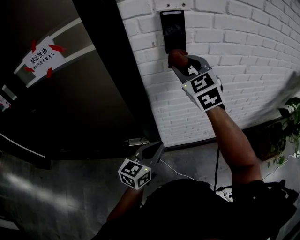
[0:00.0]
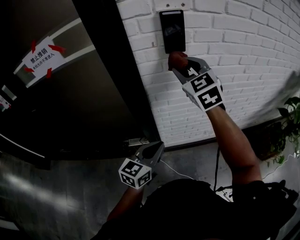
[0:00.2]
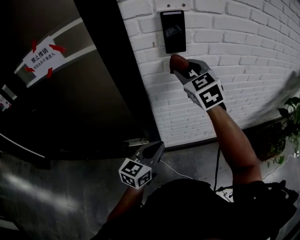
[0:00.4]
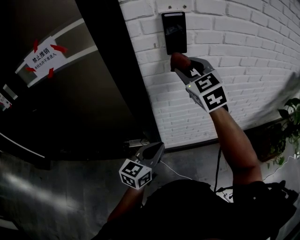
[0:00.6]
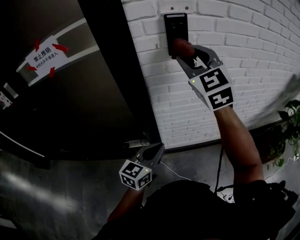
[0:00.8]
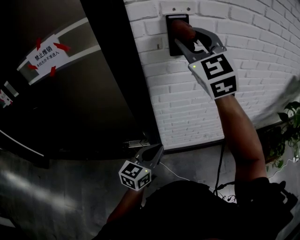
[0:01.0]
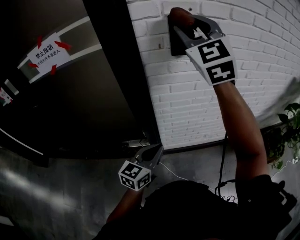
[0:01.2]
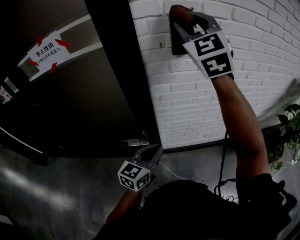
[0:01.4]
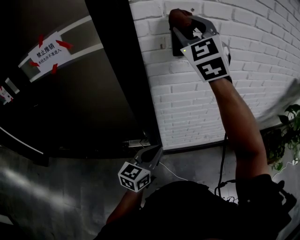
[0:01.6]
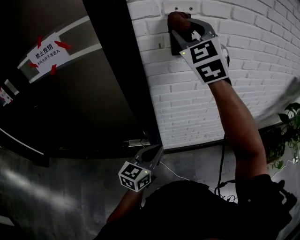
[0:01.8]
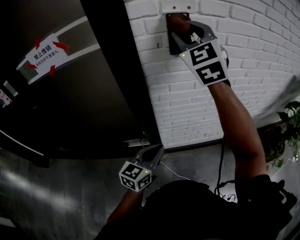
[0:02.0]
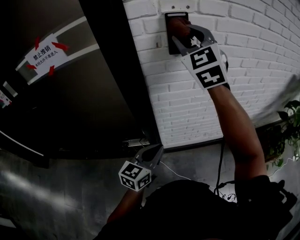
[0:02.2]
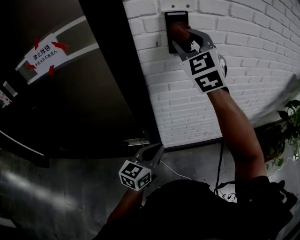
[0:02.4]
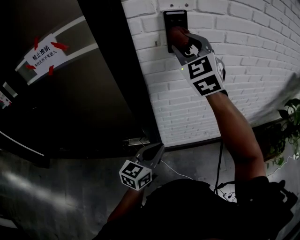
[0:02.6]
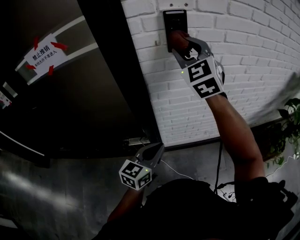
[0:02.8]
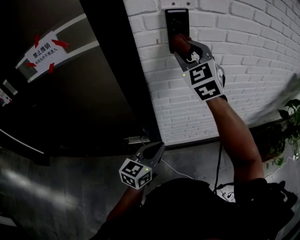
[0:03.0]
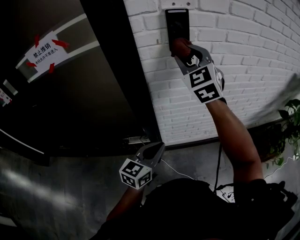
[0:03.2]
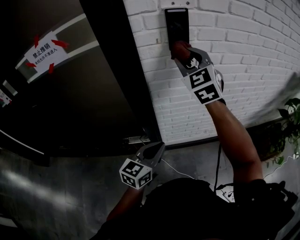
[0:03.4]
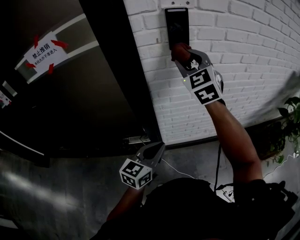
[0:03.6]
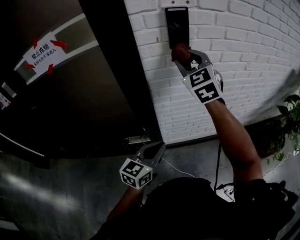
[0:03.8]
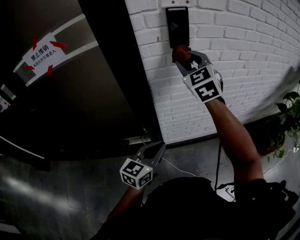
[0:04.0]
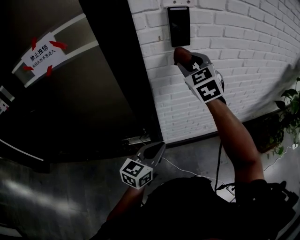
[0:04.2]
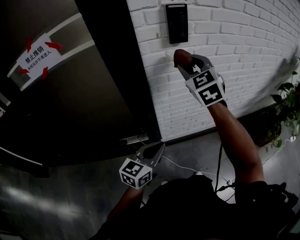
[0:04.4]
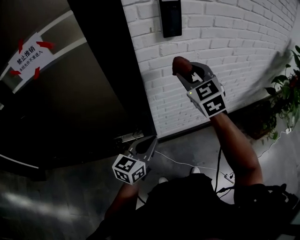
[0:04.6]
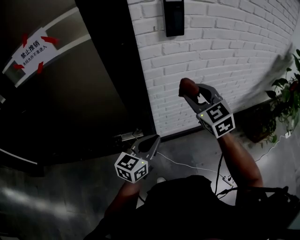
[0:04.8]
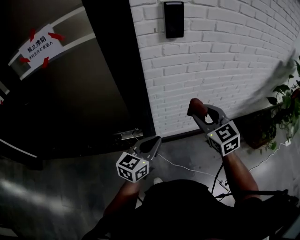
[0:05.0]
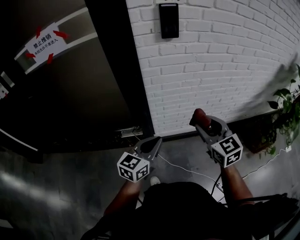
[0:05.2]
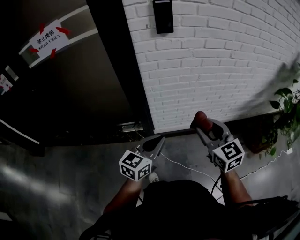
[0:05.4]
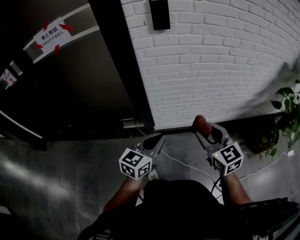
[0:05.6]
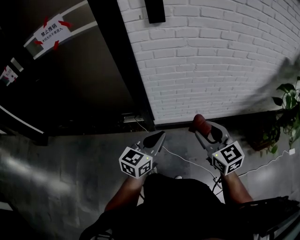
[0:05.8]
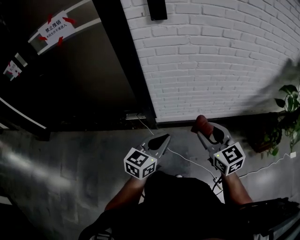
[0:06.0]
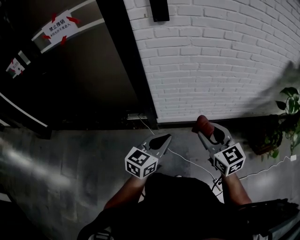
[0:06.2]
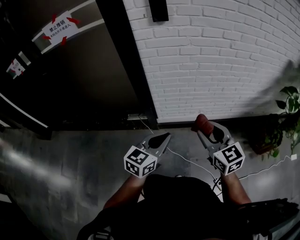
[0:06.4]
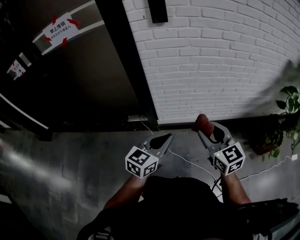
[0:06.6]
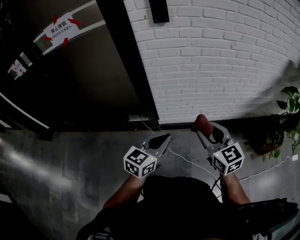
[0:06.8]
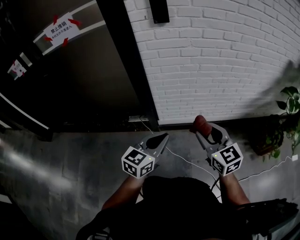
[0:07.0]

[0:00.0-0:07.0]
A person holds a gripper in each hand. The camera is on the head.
0.0 to 1.4 s: The right gripper is displaced upward by about 15 cm, and turns by about 20 degrees.
1.4 to 2.8 s: The right gripper goes approximately 10 cm downward.
2.8 to 4.2 s: The right gripper shifts approximately 10 cm downward.
4.2 to 5.6 s: The left gripper travels to the right and backward by approximately 15 cm. Meanwhile the right gripper shifts some 40 cm backward, to the right and downward, and changes its angle by approximately 30 degrees.
5.6 to 7.0 s: The left gripper moves approximately 5 cm.

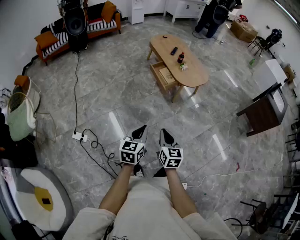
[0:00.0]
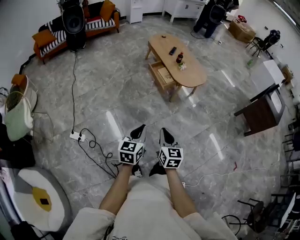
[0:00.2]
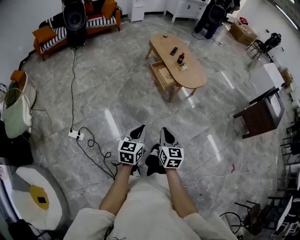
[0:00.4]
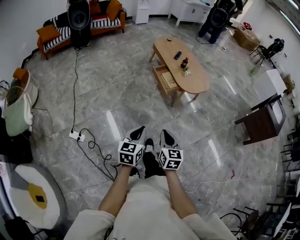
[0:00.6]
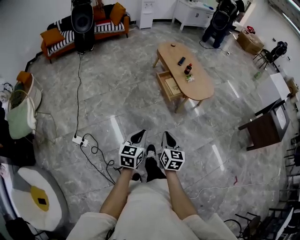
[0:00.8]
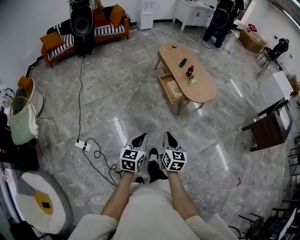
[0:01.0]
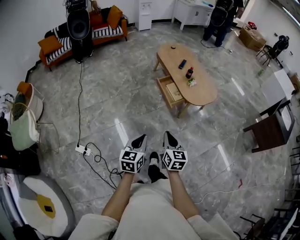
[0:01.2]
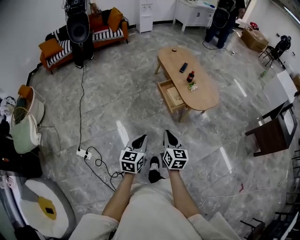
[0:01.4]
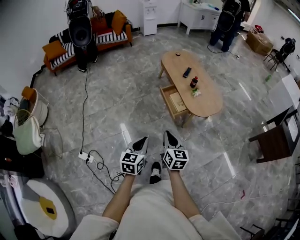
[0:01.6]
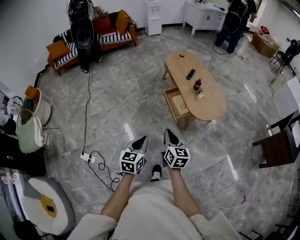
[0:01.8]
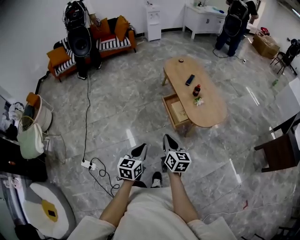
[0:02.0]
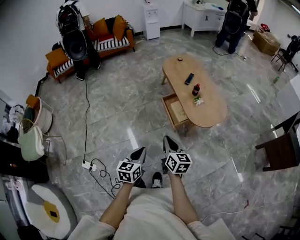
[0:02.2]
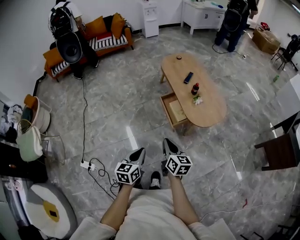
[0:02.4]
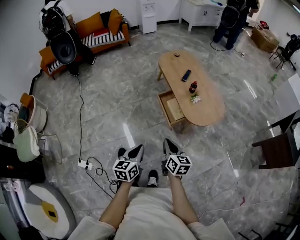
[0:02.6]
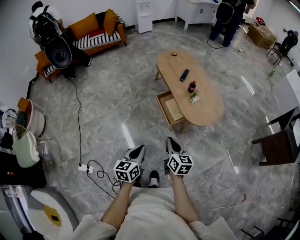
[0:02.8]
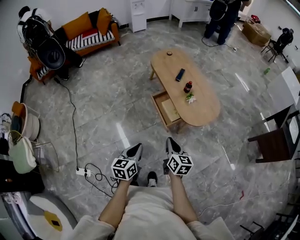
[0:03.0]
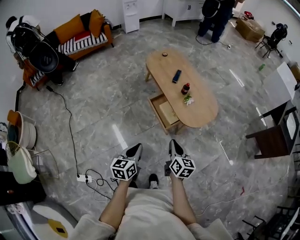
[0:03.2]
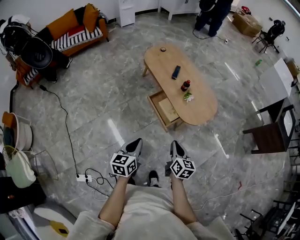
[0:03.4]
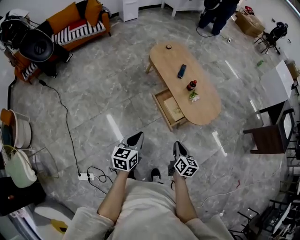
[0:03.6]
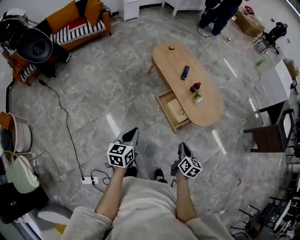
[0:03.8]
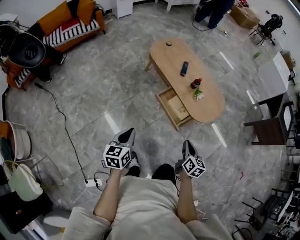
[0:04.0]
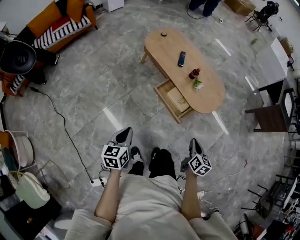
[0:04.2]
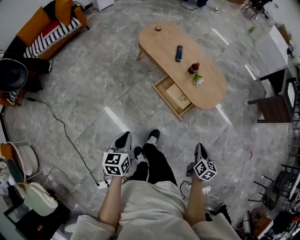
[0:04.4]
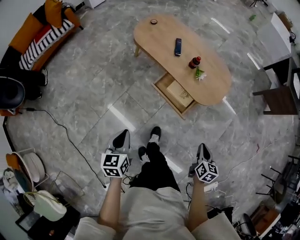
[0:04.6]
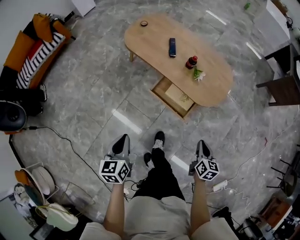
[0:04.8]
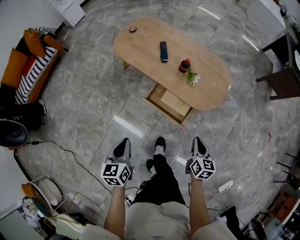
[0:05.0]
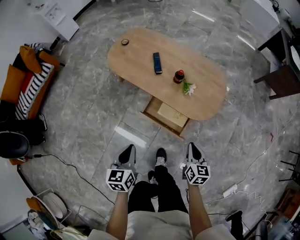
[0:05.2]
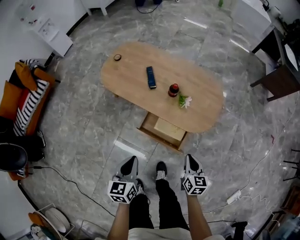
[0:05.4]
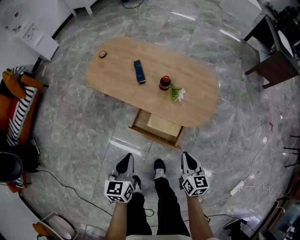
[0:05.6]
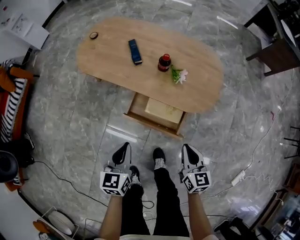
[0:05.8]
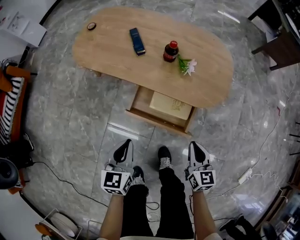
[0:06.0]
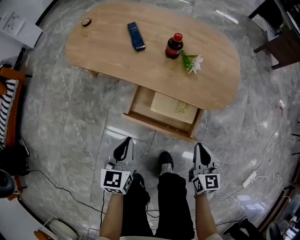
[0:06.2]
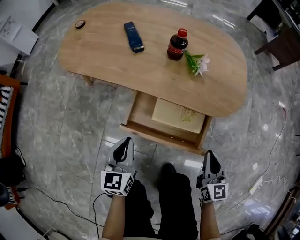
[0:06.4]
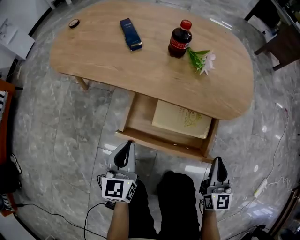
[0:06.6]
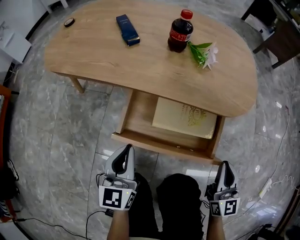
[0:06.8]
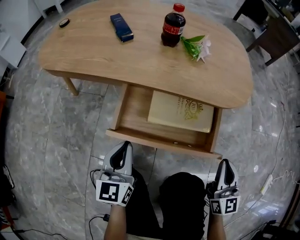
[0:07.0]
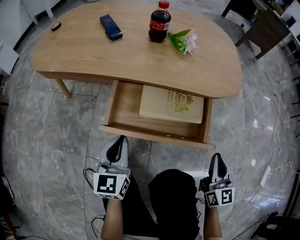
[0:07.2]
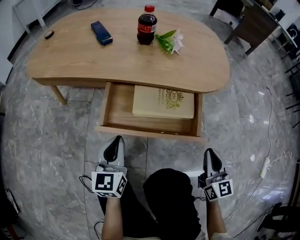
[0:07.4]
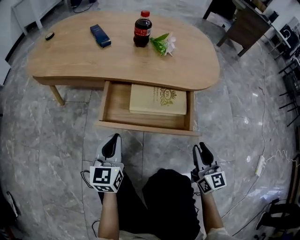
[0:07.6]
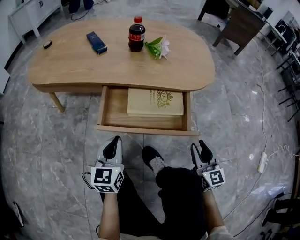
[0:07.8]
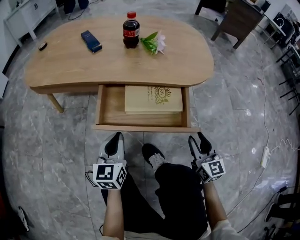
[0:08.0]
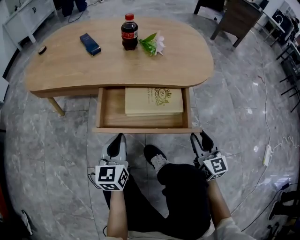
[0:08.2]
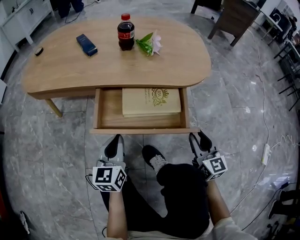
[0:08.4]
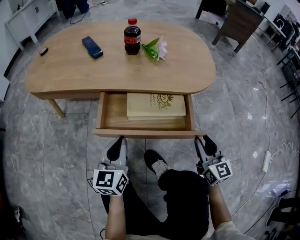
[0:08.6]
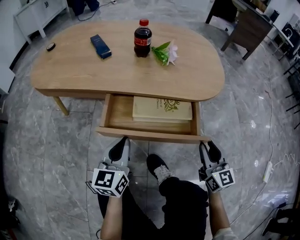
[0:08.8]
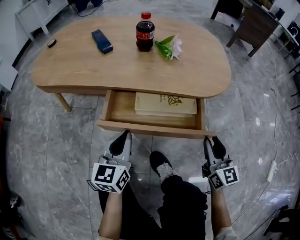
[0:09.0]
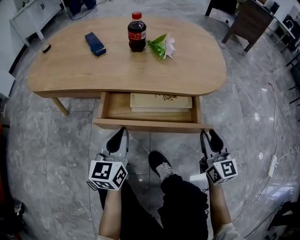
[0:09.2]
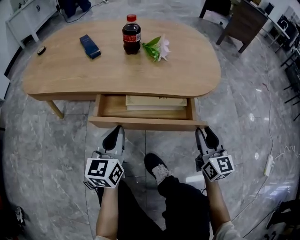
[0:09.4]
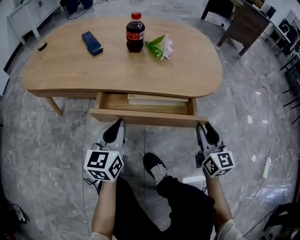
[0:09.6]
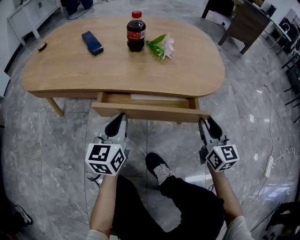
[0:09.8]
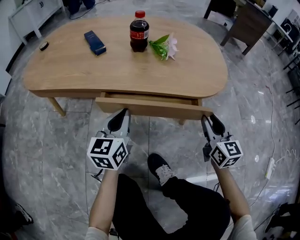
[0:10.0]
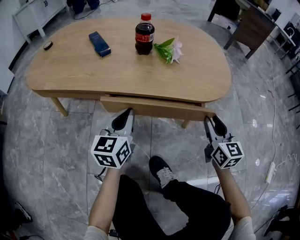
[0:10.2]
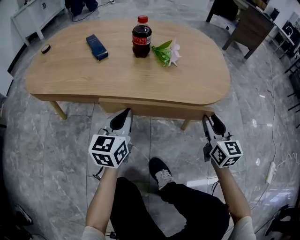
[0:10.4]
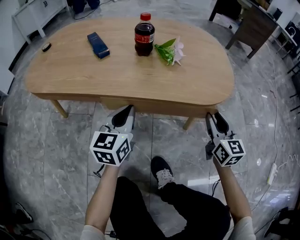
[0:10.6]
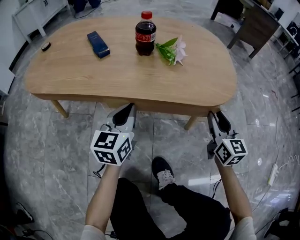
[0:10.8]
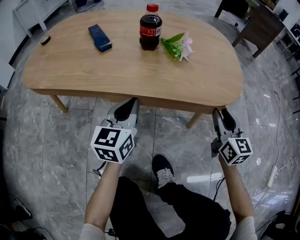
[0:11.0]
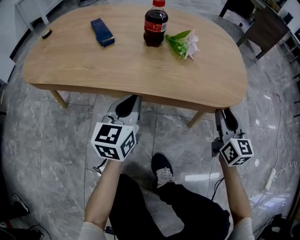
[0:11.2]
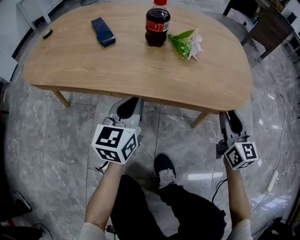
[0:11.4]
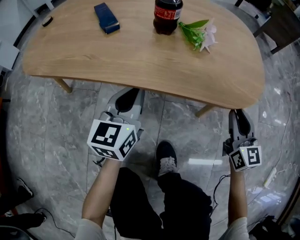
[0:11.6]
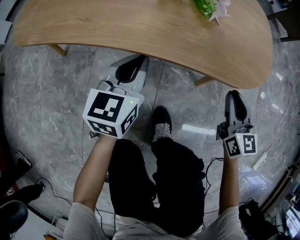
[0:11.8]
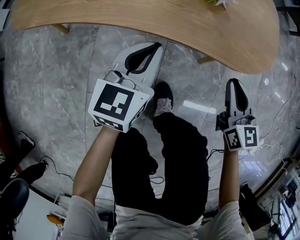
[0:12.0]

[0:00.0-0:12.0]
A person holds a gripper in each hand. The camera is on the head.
0.0 to 1.6 s: The two grippers go about 25 cm forward.
1.6 to 3.0 s: The right gripper travels forward and to the right by roughly 15 cm. The left gripper is displaced forward by some 15 cm.
3.0 to 4.4 s: The left gripper is displaced to the left and forward by approximately 30 cm. The right gripper is displaced downward by approximately 10 cm, and changes its angle by roughly 40 degrees.
4.4 to 6.0 s: The left gripper moves forward and downward, some 35 cm, and turns by approximately 30 degrees. The right gripper travels downward and forward by roughly 25 cm.
6.0 to 7.6 s: Both grippers move downward, approximately 20 cm. The left gripper swivels approximately 20 degrees. The right gripper rotates some 20 degrees, and opens up.
7.6 to 9.0 s: The right gripper shifts approximately 5 cm forward. Meanwhile the left gripper ends up roughly 5 cm from where it was.
9.0 to 10.4 s: The grippers both shift forward by approximately 10 cm.
10.4 to 12.0 s: The left gripper moves about 5 cm, while the right gripper closes up.

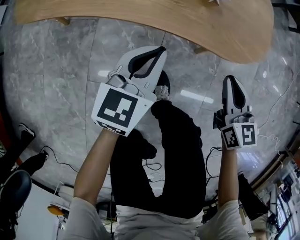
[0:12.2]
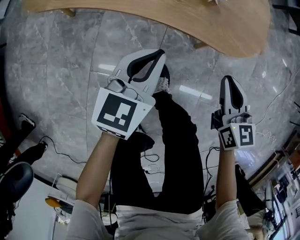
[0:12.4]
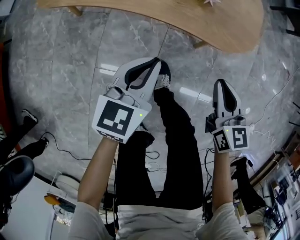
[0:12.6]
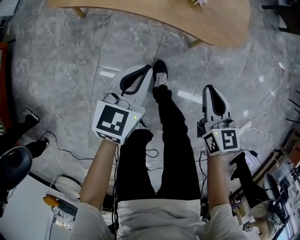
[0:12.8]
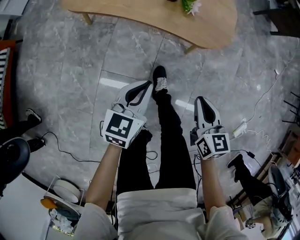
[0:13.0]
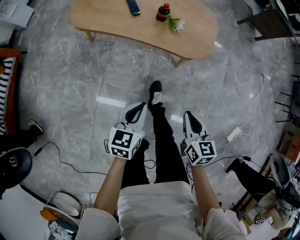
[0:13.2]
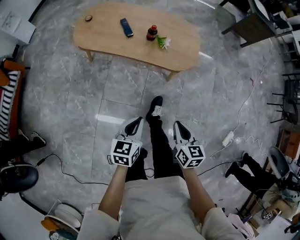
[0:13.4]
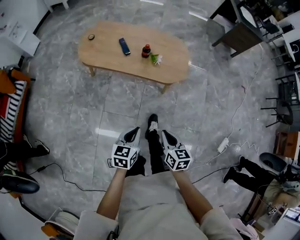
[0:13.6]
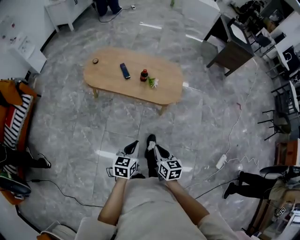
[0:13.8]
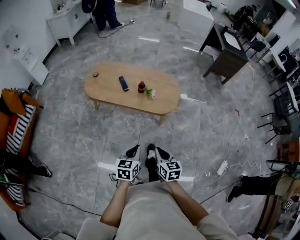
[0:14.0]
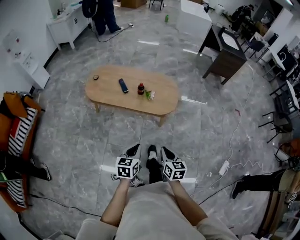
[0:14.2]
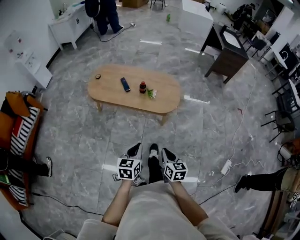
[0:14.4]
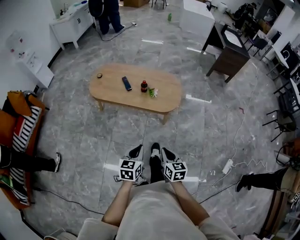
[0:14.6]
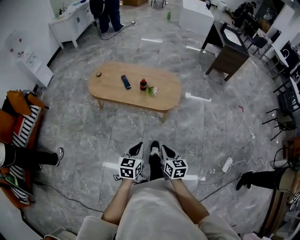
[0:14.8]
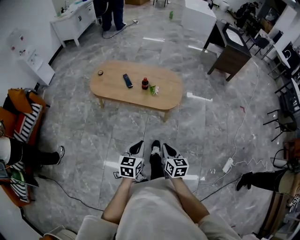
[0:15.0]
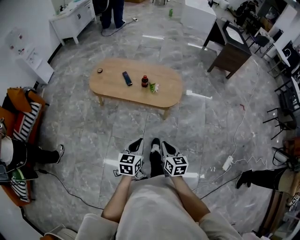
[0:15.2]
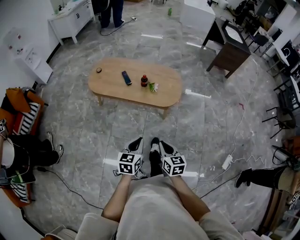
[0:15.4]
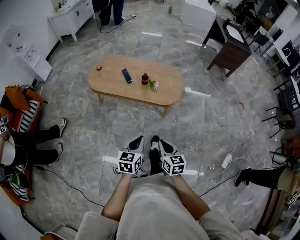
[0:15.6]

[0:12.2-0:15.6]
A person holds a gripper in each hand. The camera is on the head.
12.2 to 13.8 s: The two grippers go about 50 cm upward and backward.
13.8 to 15.6 s: The left gripper changes place by approximately 5 cm.

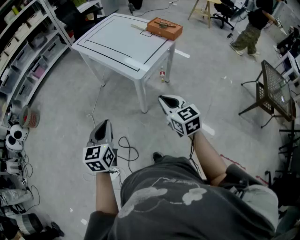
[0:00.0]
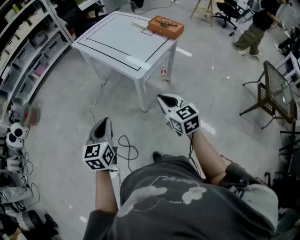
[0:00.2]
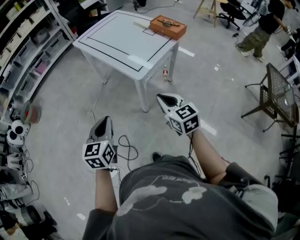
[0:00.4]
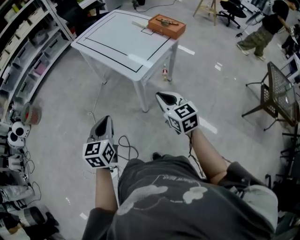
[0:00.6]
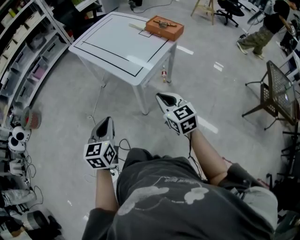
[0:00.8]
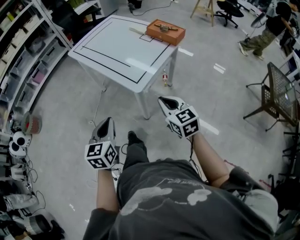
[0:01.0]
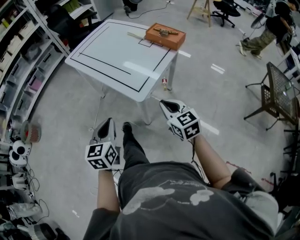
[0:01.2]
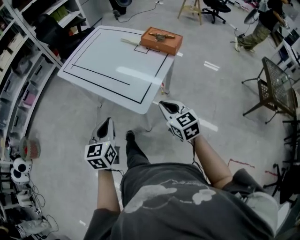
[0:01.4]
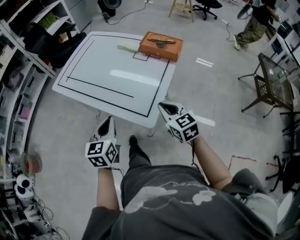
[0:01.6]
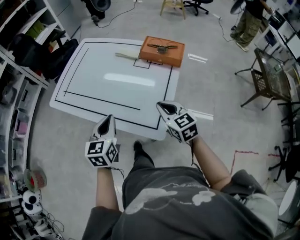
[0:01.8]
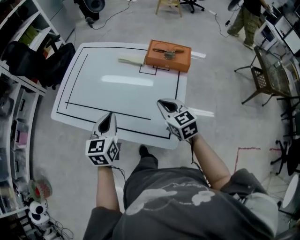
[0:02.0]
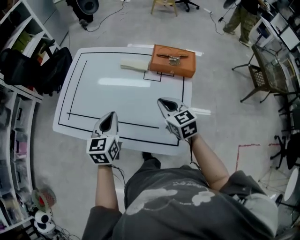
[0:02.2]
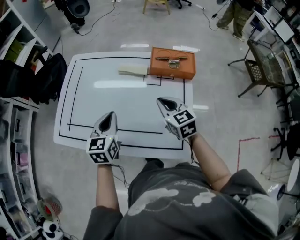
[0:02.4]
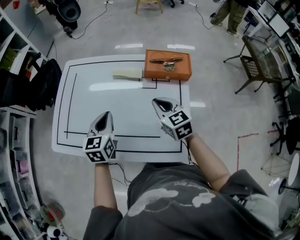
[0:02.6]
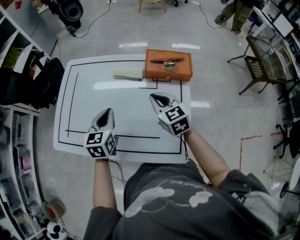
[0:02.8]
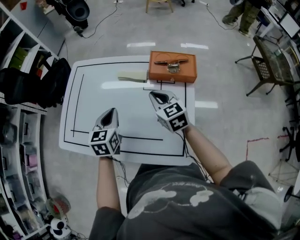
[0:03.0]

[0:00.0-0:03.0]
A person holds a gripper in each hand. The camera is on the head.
0.0 to 1.6 s: Both grippers travel together forward, approximately 30 cm.
1.6 to 3.0 s: Both grippers travel together forward, approximately 30 cm.
